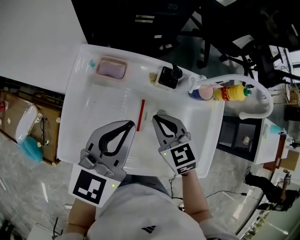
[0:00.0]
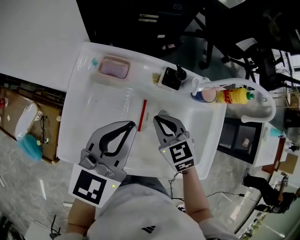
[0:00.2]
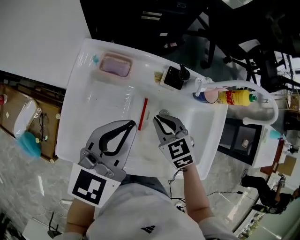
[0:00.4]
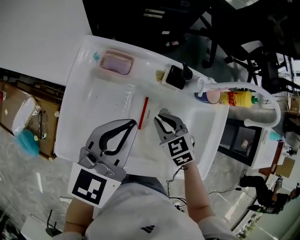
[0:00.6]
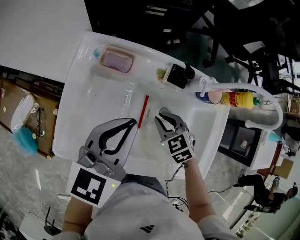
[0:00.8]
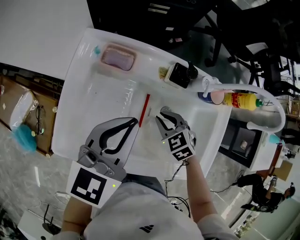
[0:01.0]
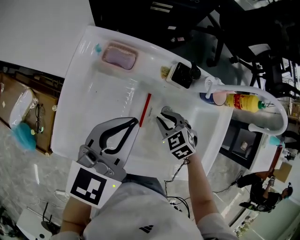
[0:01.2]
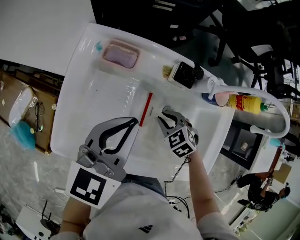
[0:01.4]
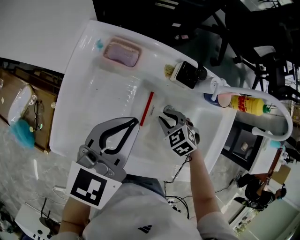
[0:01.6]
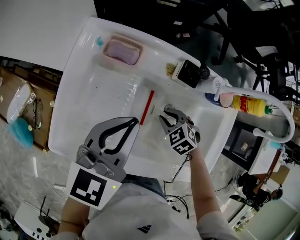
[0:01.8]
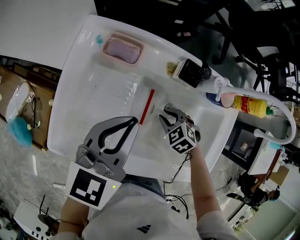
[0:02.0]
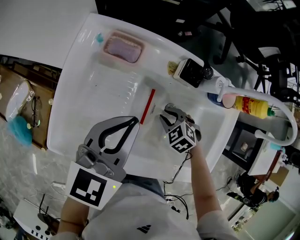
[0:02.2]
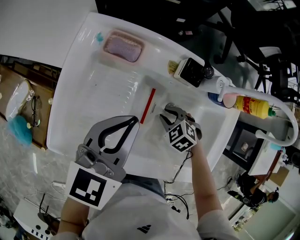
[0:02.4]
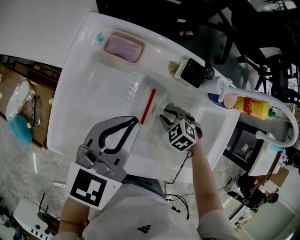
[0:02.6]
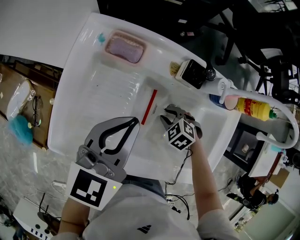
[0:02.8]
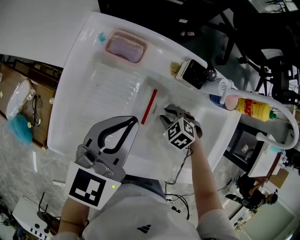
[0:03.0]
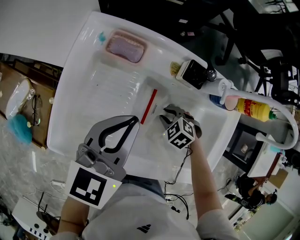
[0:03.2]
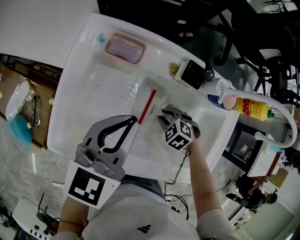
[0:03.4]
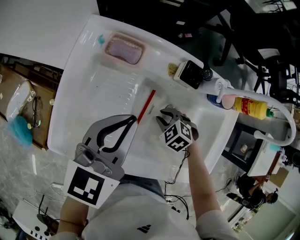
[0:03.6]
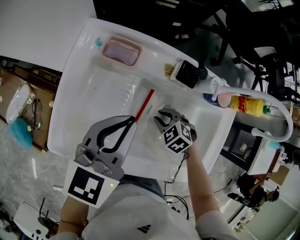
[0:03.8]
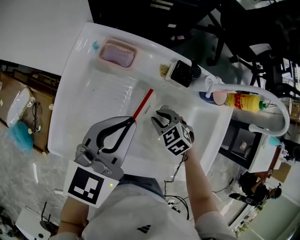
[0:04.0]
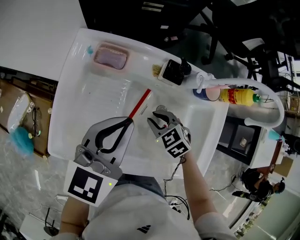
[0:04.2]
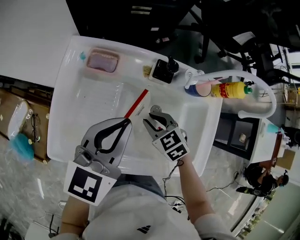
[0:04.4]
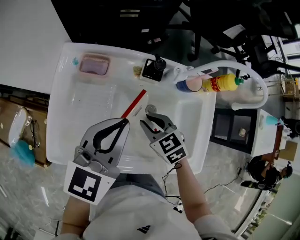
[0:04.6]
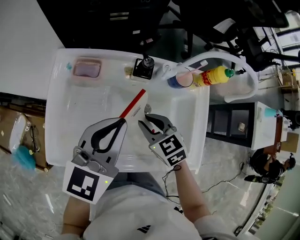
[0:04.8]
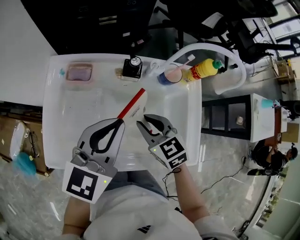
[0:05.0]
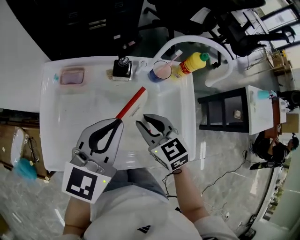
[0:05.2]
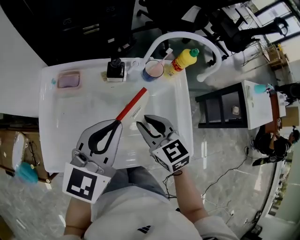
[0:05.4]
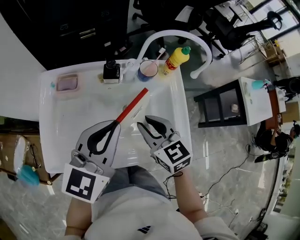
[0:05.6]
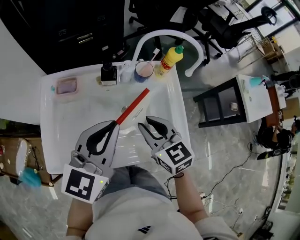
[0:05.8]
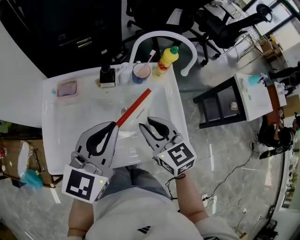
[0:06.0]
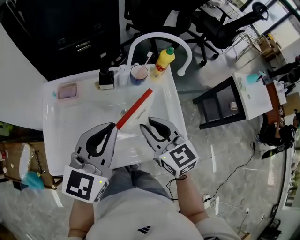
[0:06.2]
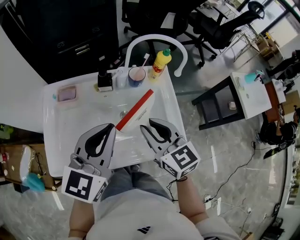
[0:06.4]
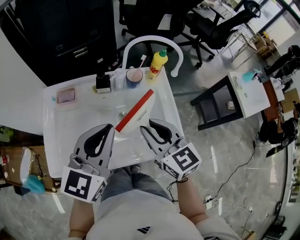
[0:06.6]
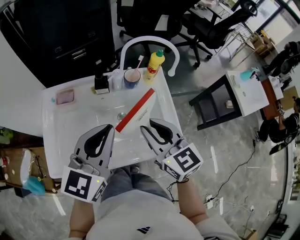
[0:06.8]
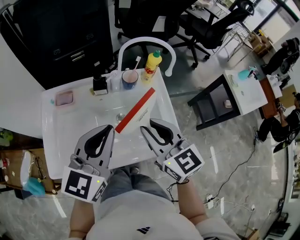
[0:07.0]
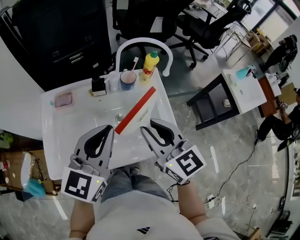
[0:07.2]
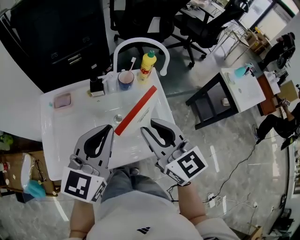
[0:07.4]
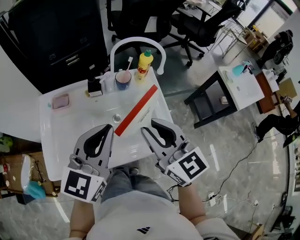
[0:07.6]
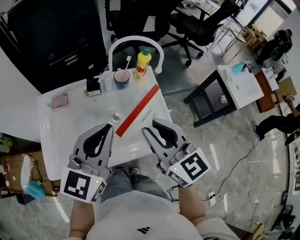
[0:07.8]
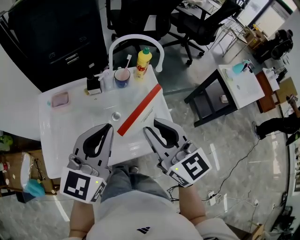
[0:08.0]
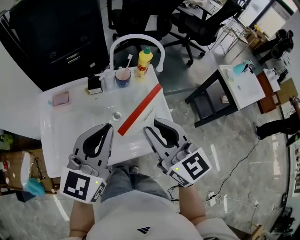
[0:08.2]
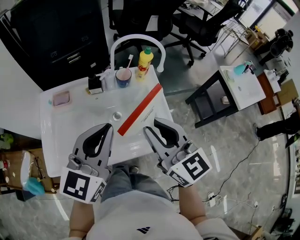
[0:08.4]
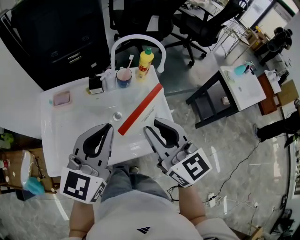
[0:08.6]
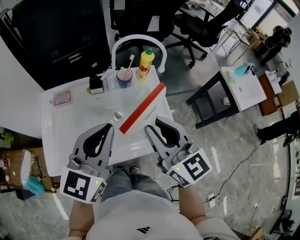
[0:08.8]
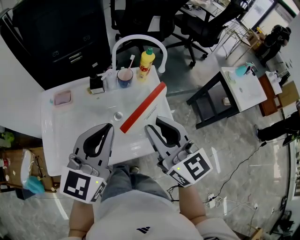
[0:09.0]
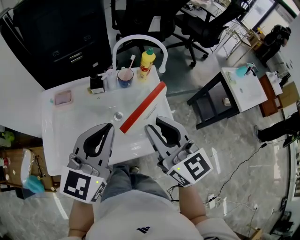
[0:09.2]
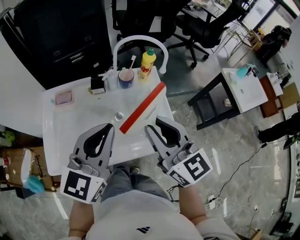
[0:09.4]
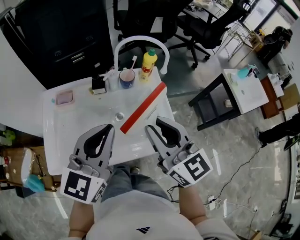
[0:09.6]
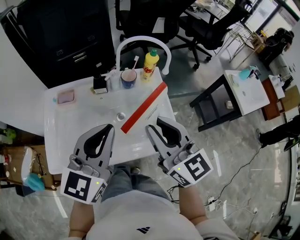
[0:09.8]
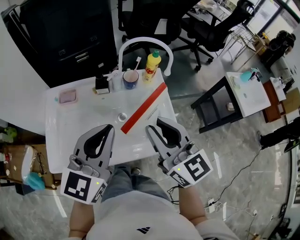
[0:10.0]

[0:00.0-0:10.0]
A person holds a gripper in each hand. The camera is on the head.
0:00.0 to 0:01.4: The right gripper goes some 15 cm downward, and swivels about 30 degrees.
0:01.4 to 0:02.8: The right gripper heads downward, covering some 5 cm.
0:02.8 to 0:04.2: The right gripper moves upward, some 10 cm, and turns by roughly 20 degrees.
0:04.2 to 0:05.8: The right gripper heads upward and to the right, covering roughly 20 cm, and angles its fingers upward, by roughly 30 degrees. The left gripper heads to the right, upward and backward, covering about 15 cm.
0:05.8 to 0:07.2: The left gripper changes place by roughly 5 cm. The right gripper moves upward, approximately 10 cm.
0:07.2 to 0:08.6: The grippers make only small movements.
0:08.6 to 0:10.0: The two grippers keep their place.

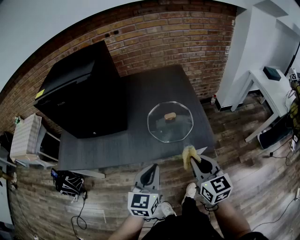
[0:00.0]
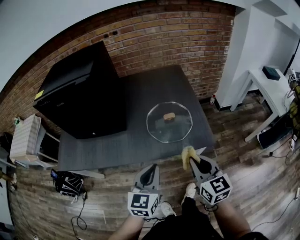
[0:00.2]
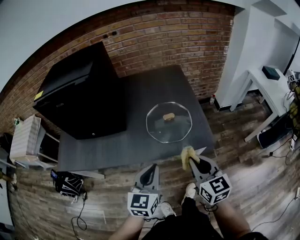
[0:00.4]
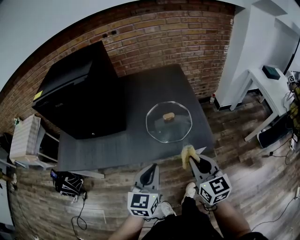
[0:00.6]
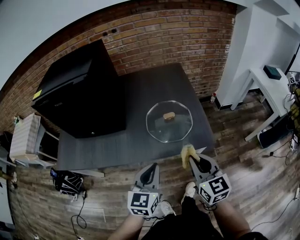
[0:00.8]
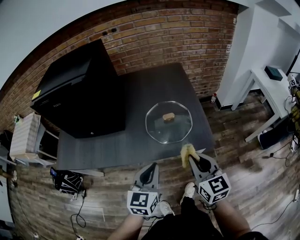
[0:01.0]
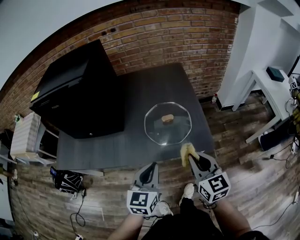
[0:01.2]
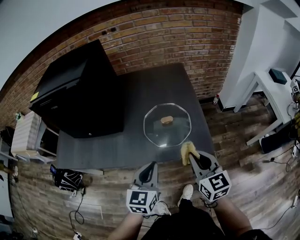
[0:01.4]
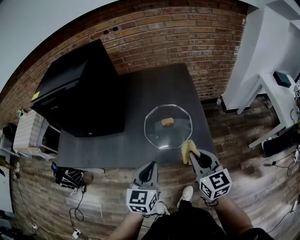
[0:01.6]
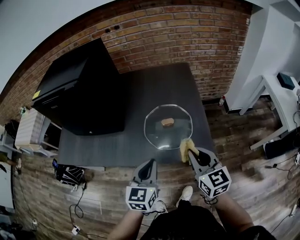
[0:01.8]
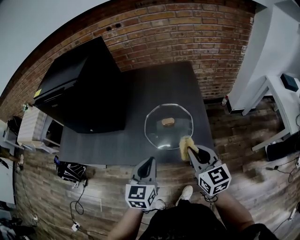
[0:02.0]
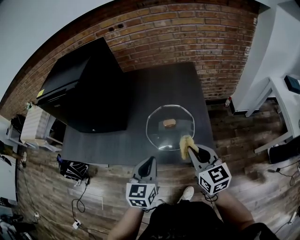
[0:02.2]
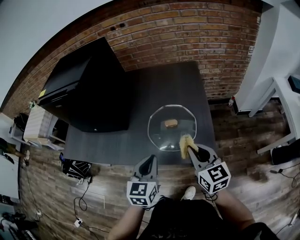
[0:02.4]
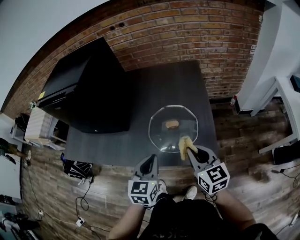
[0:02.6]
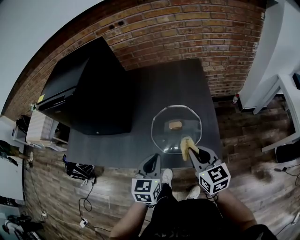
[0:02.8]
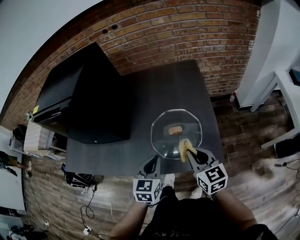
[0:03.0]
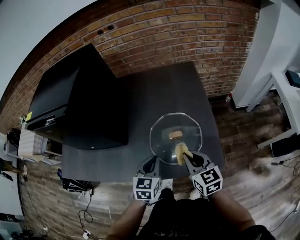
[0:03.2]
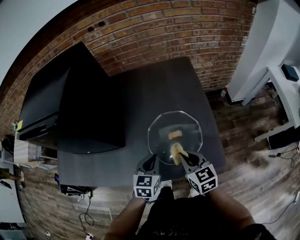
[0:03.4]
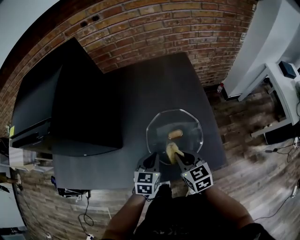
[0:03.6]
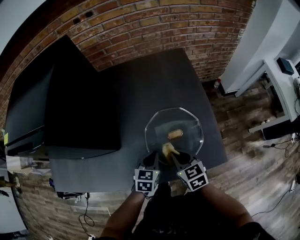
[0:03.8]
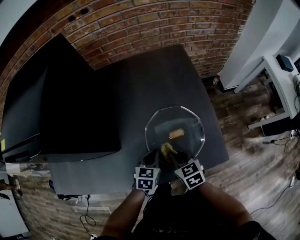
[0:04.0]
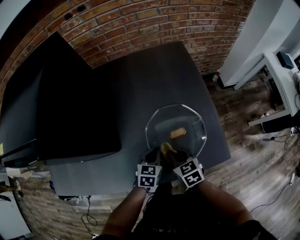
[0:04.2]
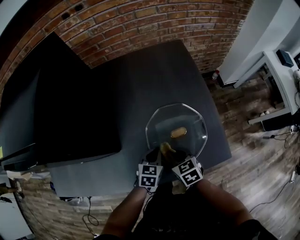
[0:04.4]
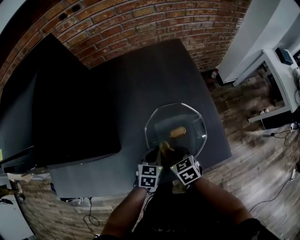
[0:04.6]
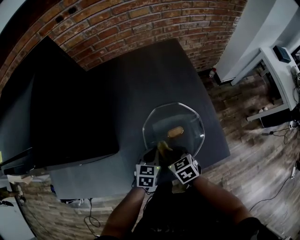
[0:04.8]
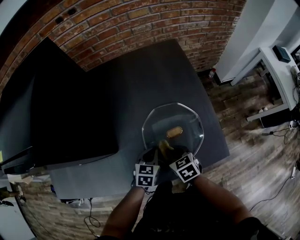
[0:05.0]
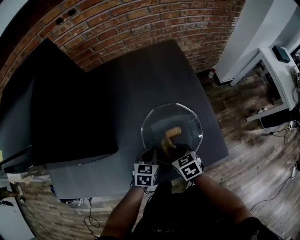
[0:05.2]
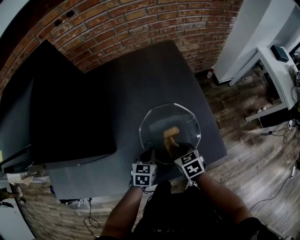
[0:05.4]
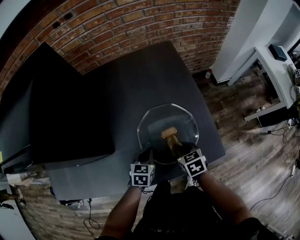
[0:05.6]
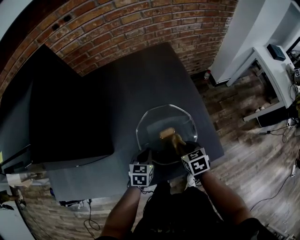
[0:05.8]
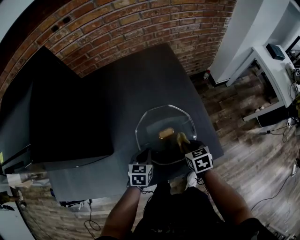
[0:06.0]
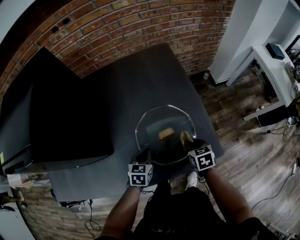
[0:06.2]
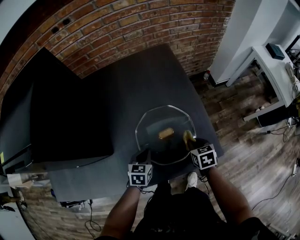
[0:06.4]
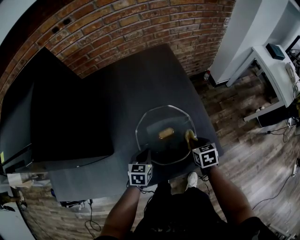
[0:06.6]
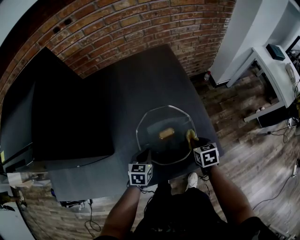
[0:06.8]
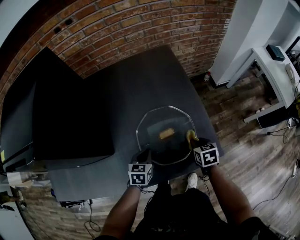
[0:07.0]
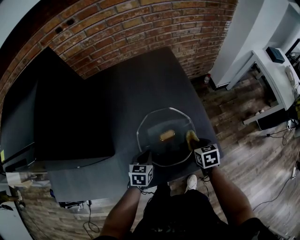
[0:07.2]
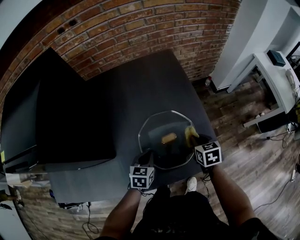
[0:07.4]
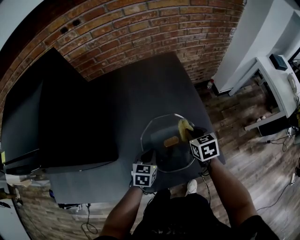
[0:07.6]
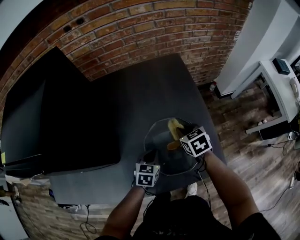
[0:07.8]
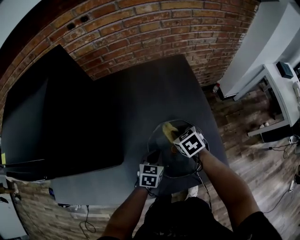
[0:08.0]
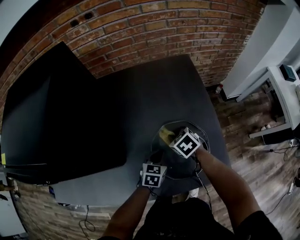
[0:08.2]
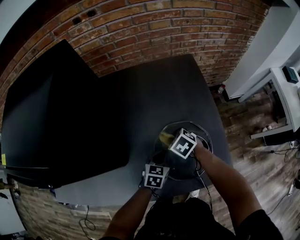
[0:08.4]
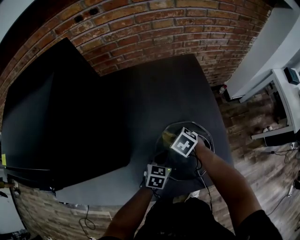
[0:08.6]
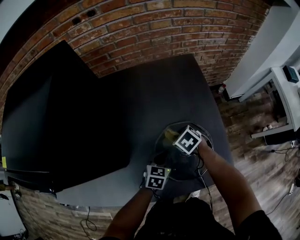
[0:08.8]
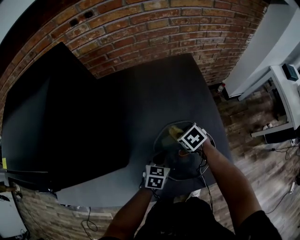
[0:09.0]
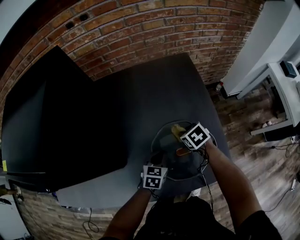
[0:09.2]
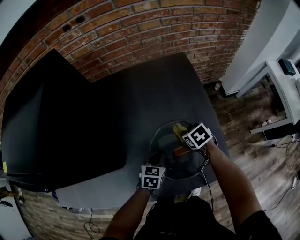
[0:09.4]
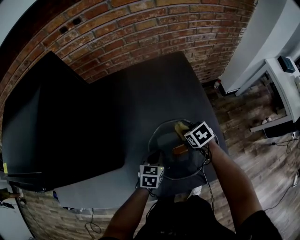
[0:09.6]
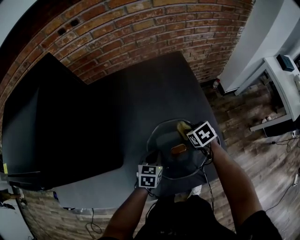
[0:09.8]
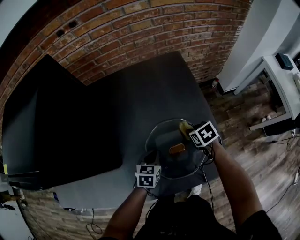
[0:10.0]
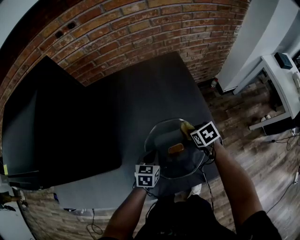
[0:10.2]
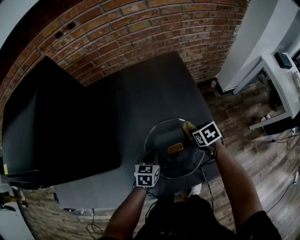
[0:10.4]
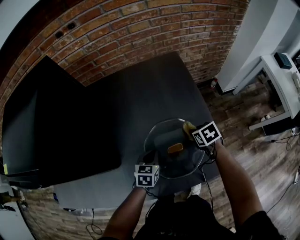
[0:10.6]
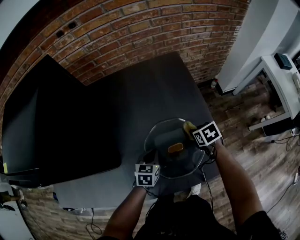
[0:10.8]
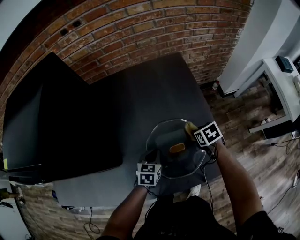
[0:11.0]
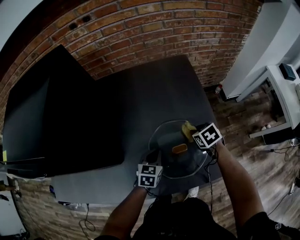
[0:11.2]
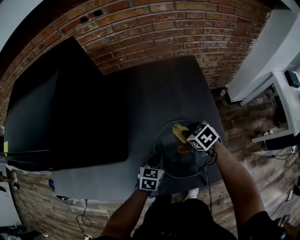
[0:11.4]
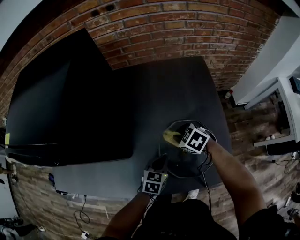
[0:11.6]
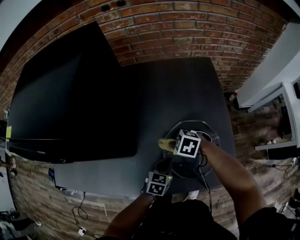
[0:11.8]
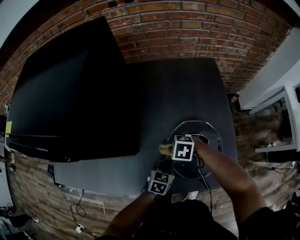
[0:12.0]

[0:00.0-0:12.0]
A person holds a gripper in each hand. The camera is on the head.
0:00.0 to 0:01.6: The grippers both shift forward and to the right by approximately 10 cm.
0:01.6 to 0:03.0: The two grippers go some 10 cm forward and downward.
0:03.0 to 0:04.4: The left gripper travels downward and forward by roughly 20 cm, and rotates about 20 degrees, while the right gripper is displaced downward, to the left and forward by approximately 20 cm, and rotates some 30 degrees.
0:04.4 to 0:06.0: The right gripper is displaced to the right by about 15 cm.
0:06.0 to 0:07.6: The right gripper travels forward and upward by some 10 cm.
0:07.6 to 0:09.0: The right gripper heads to the left, forward and downward, covering some 15 cm, and rotates approximately 30 degrees.
0:09.0 to 0:10.4: The right gripper moves to the right, about 10 cm.
0:10.4 to 0:12.0: The left gripper moves approximately 5 cm. The right gripper shifts by some 25 cm, and rotates around the line of its fingers by approximately 60 degrees, counterclockwise from behind.

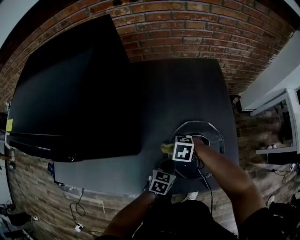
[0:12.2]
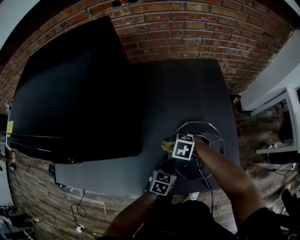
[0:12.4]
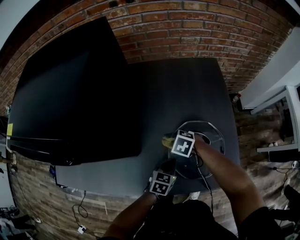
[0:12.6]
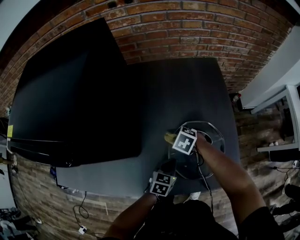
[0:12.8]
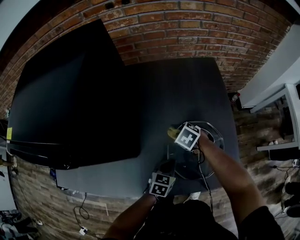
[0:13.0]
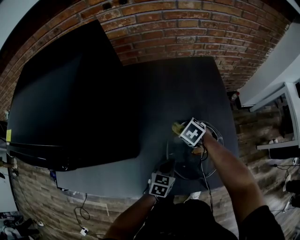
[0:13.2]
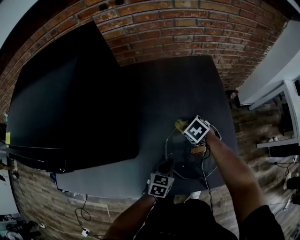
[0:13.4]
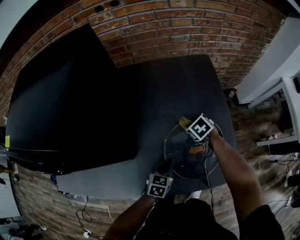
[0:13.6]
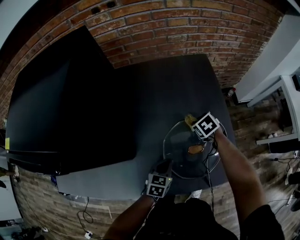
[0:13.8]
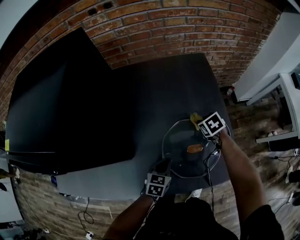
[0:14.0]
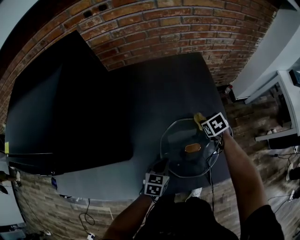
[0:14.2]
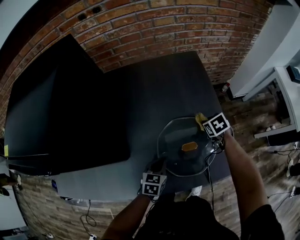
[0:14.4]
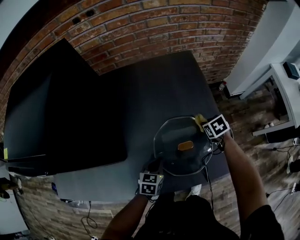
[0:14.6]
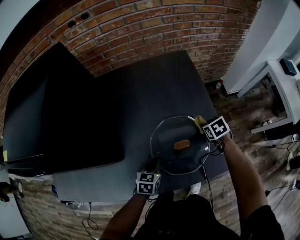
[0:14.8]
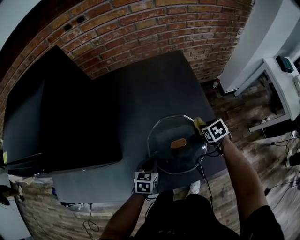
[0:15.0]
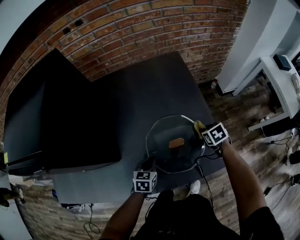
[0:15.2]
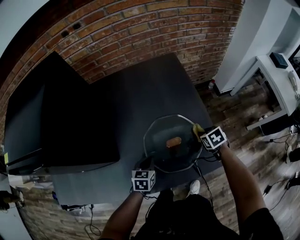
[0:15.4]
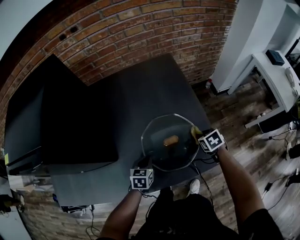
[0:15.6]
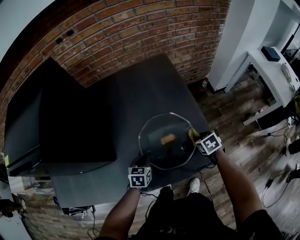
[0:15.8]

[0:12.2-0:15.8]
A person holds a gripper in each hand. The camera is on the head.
0:12.2 to 0:14.0: The right gripper changes place by approximately 25 cm, and rotates around the line of its fingers by roughly 50 degrees, clockwise from behind.
0:14.0 to 0:15.8: The right gripper shifts approximately 20 cm backward and to the right.
